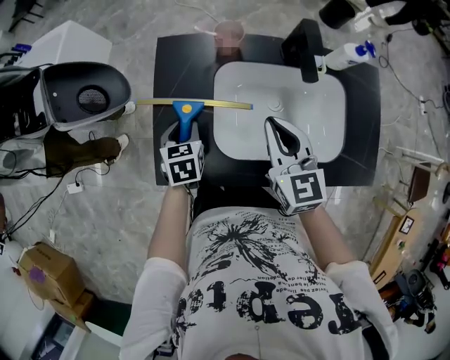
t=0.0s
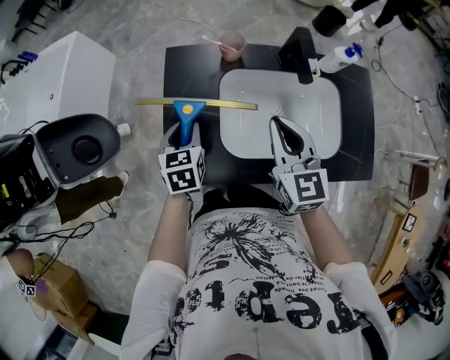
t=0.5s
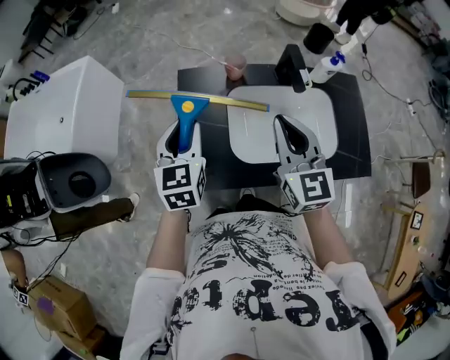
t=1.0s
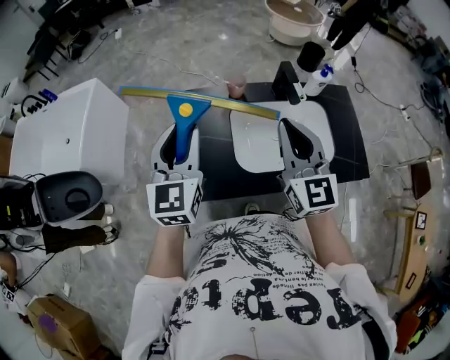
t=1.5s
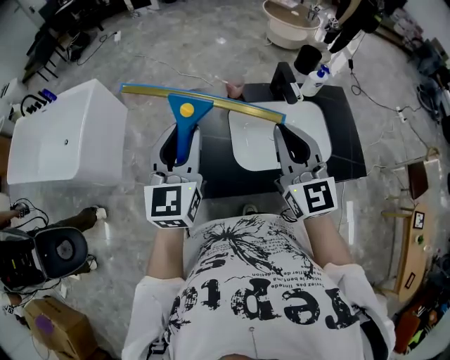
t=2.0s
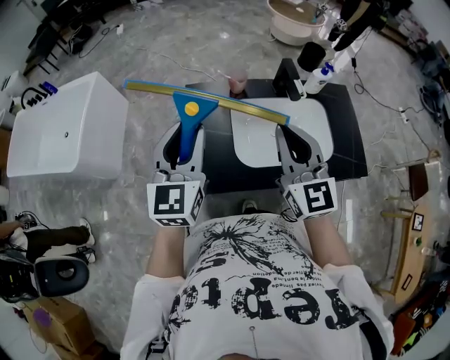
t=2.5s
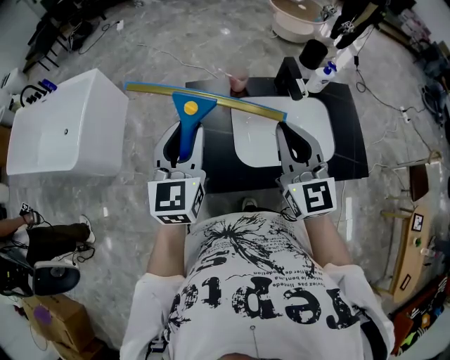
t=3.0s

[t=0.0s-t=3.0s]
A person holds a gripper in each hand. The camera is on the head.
t=0.0s to t=1.5s: The left gripper goes some 35 cm upward, and tilts its fingers roughly 40 degrees upward; the right gripper goes about 20 cm upward, and changes its angle by some 30 degrees.
t=1.5s to t=3.0s: The grippers make only small movements.

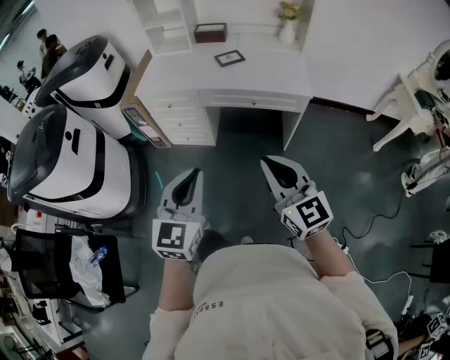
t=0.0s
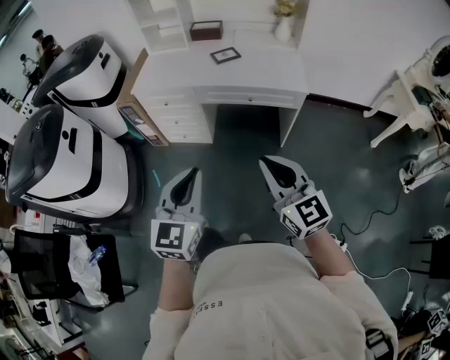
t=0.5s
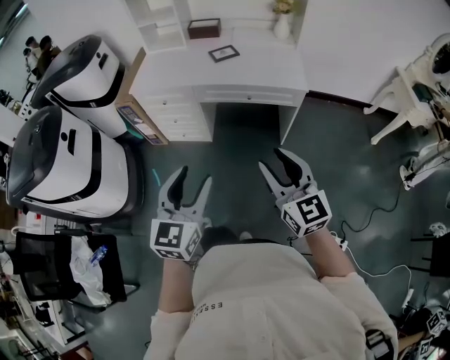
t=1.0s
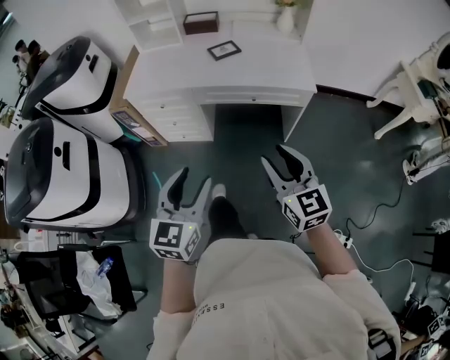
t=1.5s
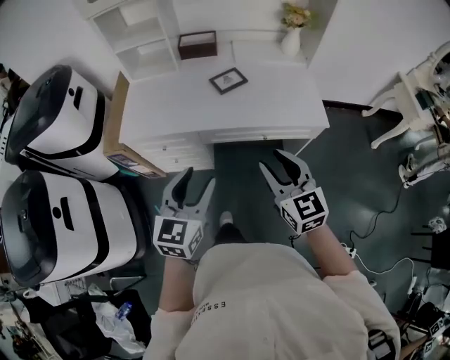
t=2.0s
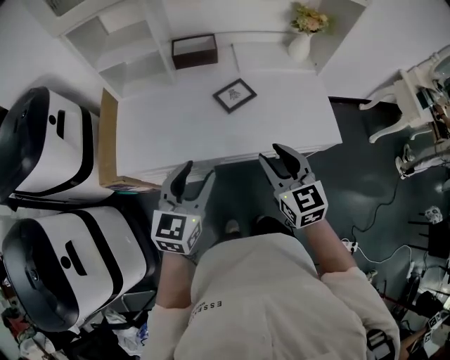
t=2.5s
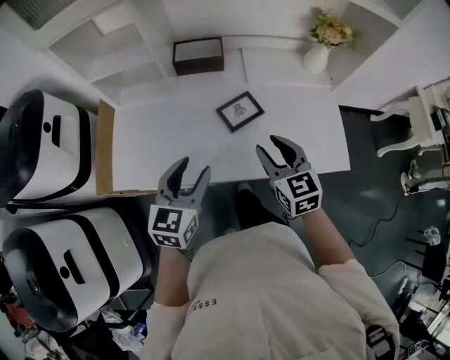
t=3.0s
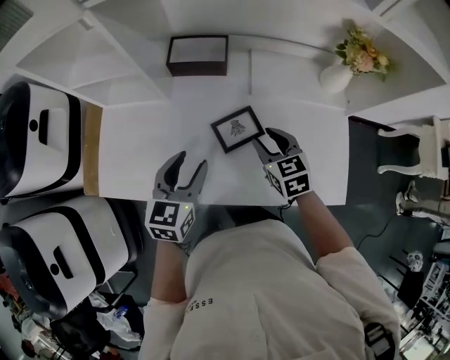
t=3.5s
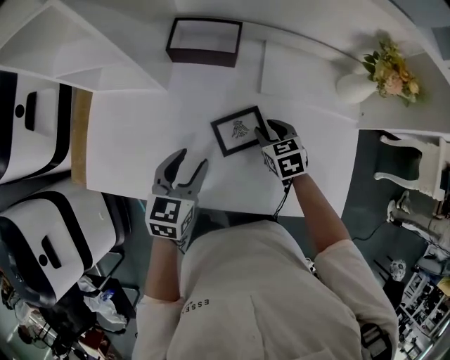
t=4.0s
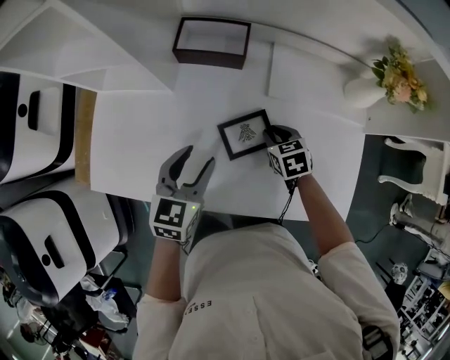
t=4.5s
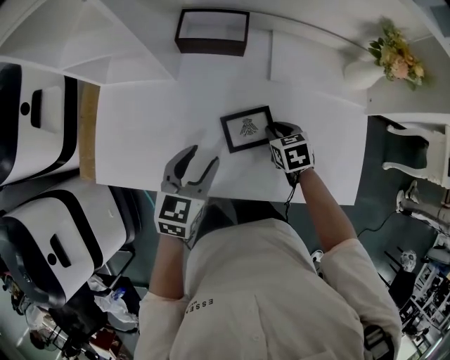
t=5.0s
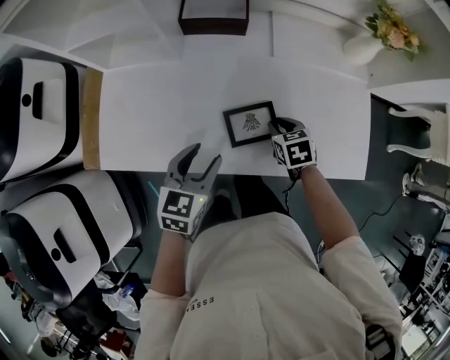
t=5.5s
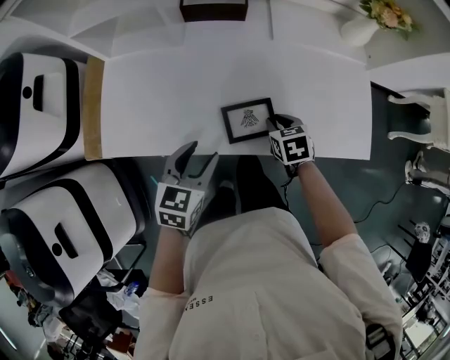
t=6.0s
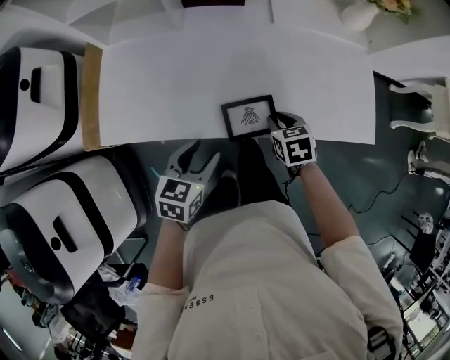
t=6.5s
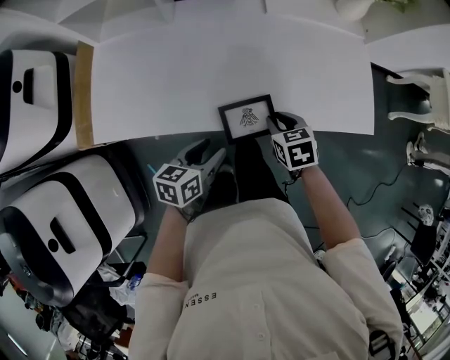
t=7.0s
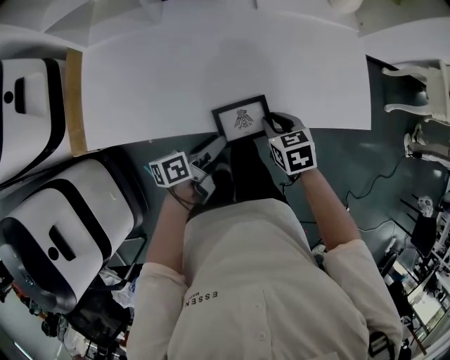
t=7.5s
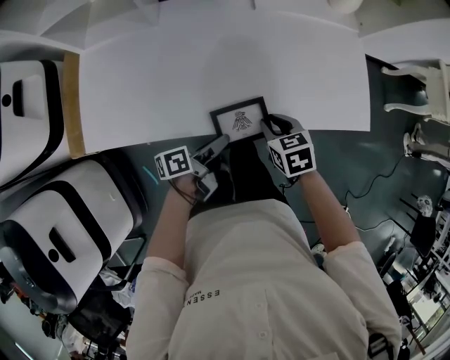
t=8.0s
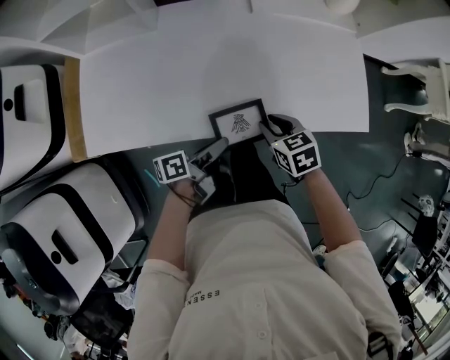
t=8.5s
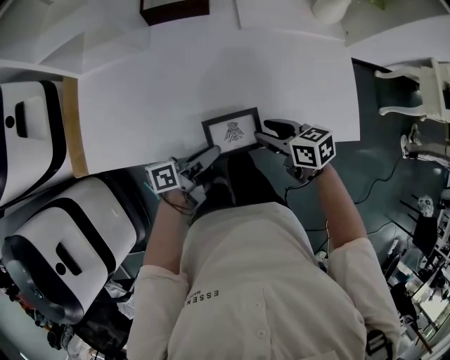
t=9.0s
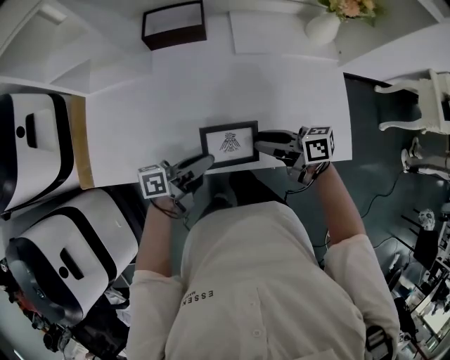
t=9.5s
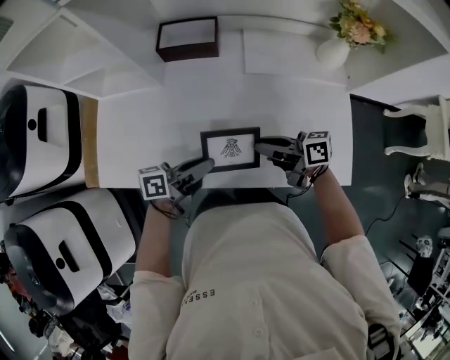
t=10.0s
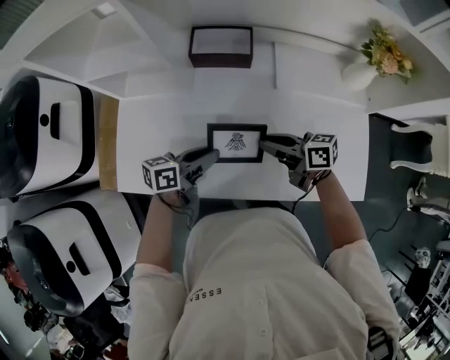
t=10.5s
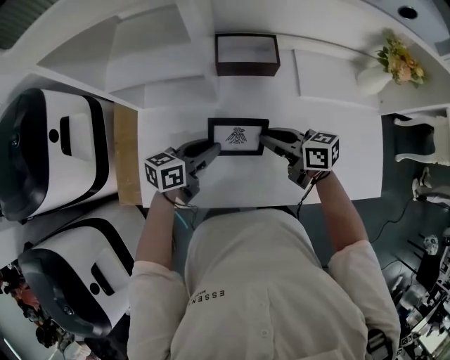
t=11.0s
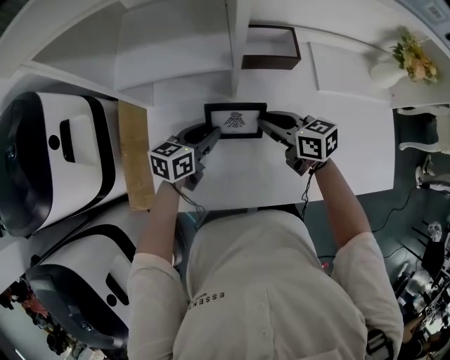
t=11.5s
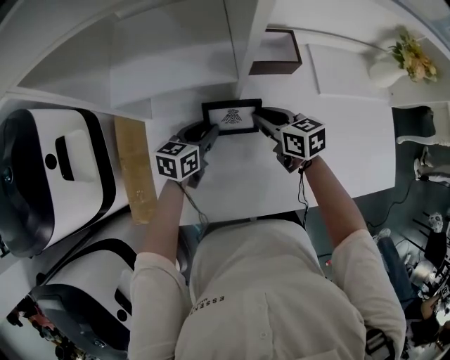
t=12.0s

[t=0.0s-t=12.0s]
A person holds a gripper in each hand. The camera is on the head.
t=0.0s to t=2.0s: The grippers both shift forward by about 30 cm. The right gripper opens up. The left gripper opens.
t=2.0s to t=4.0s: The pair of grippers is taken forward, about 50 cm. The right gripper shifts approximately 25 cm downward, and points its fingers approximately 40 degrees further downward; the left gripper turns by roughly 20 degrees.
t=4.0s to t=6.0s: The grippers both shift backward by about 15 cm.
t=6.0s to t=8.0s: The right gripper moves backward, approximately 10 cm; the left gripper travels downward and to the right by roughly 15 cm, rolls counterclockwise, seen from behind, by roughly 60 degrees, and closes.
t=8.0s to t=10.0s: The left gripper goes roughly 10 cm upward, and changes its angle by about 20 degrees, while the right gripper changes place by about 15 cm, tips its fingers upward by about 50 degrees, and opens and closes again.
t=10.0s to t=12.0s: The right gripper shifts by roughly 30 cm, and turns by roughly 40 degrees. The left gripper ends up roughly 35 cm from where it was, and changes its angle by roughly 40 degrees.

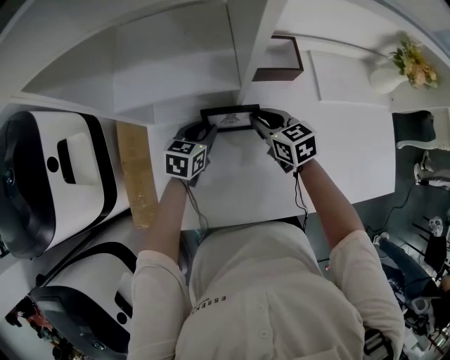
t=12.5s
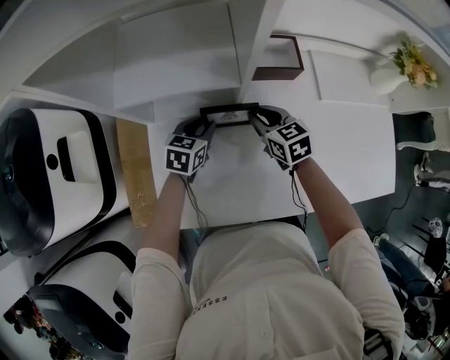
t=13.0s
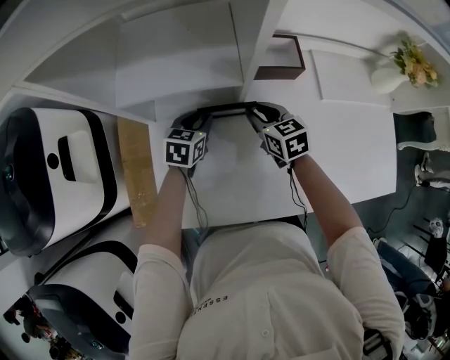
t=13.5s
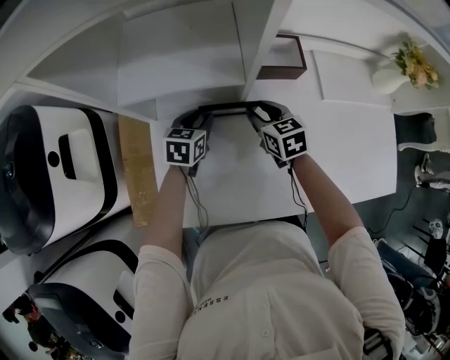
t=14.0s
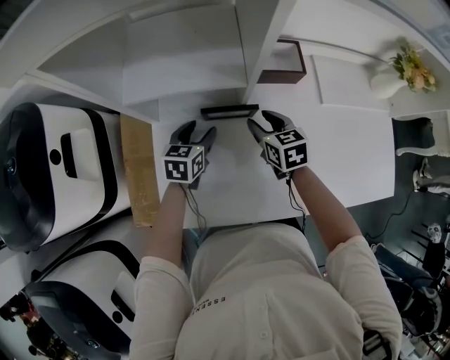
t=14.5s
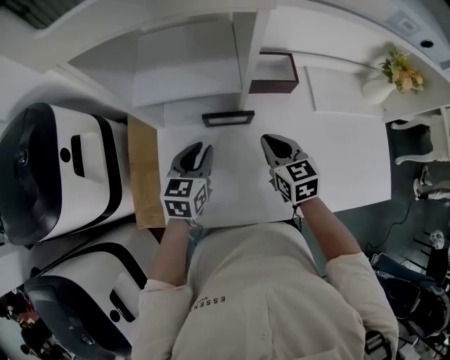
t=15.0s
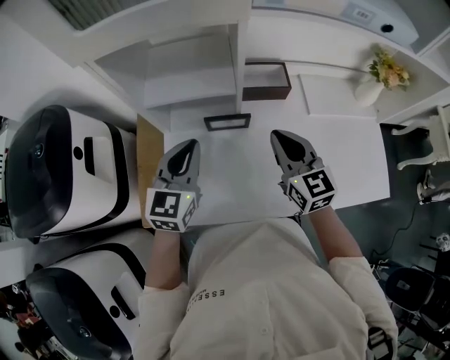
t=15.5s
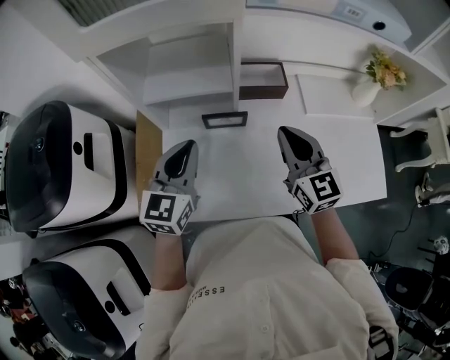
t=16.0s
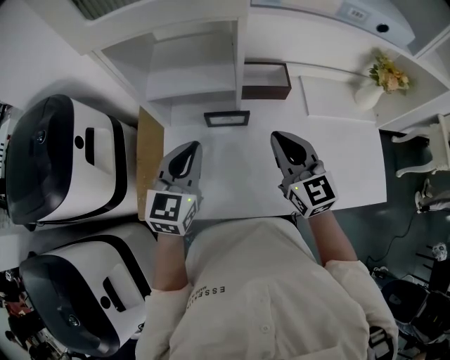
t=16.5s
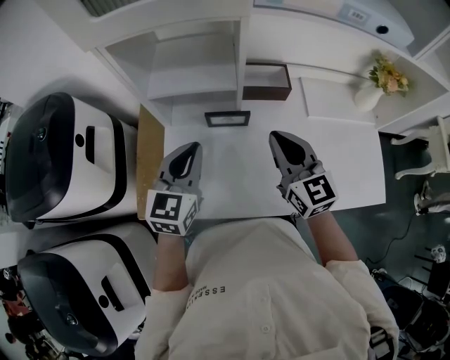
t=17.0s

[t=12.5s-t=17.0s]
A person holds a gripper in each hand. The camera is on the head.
t=12.5s to t=14.5s: The left gripper opens its fingers. The right gripper opens up.
t=14.5s to t=17.0s: The grippers both shift upward and backward by roughly 25 cm. The right gripper angles its fingers upward, by roughly 30 degrees, and closes up; the left gripper changes its angle by roughly 30 degrees, and closes up.

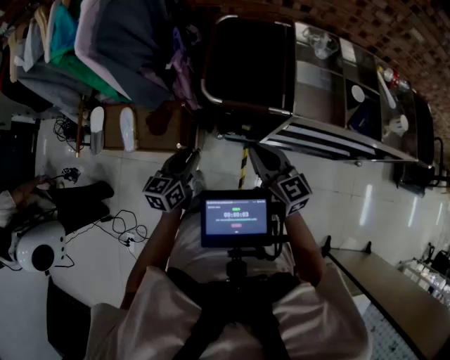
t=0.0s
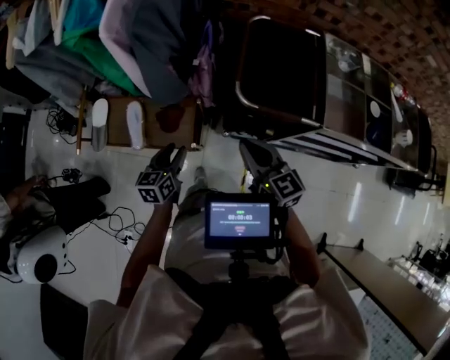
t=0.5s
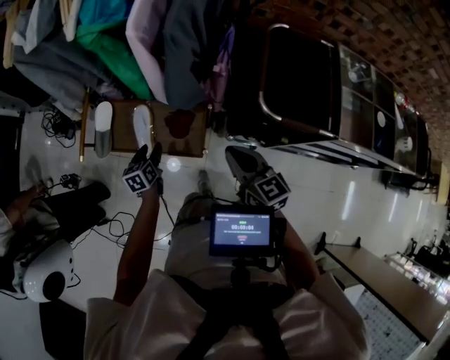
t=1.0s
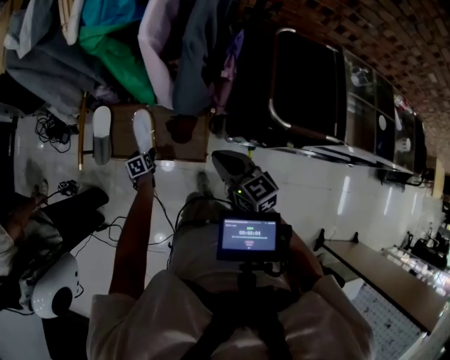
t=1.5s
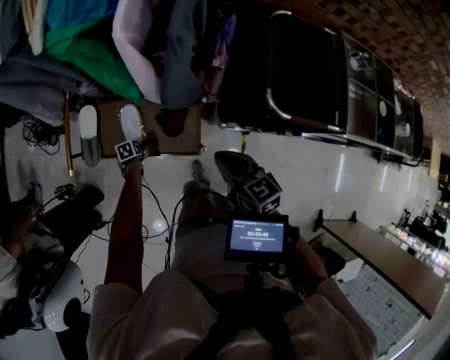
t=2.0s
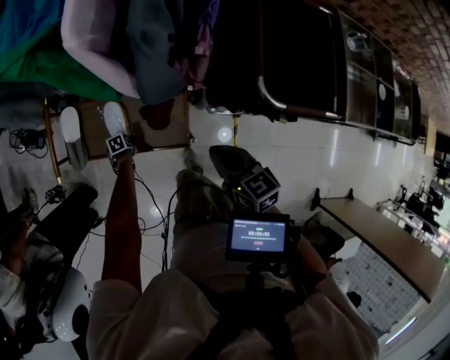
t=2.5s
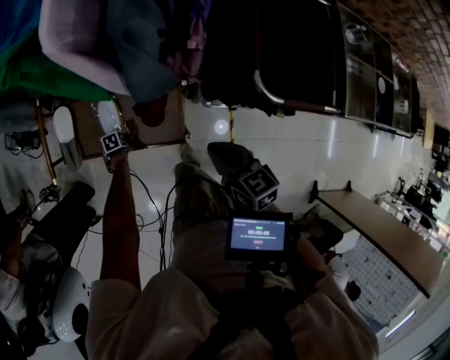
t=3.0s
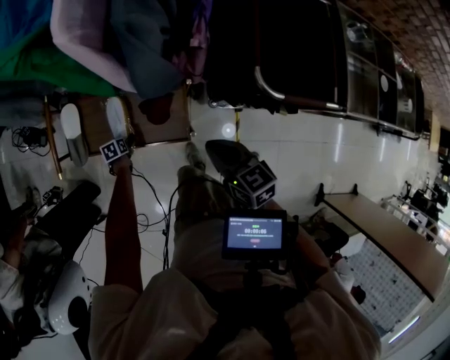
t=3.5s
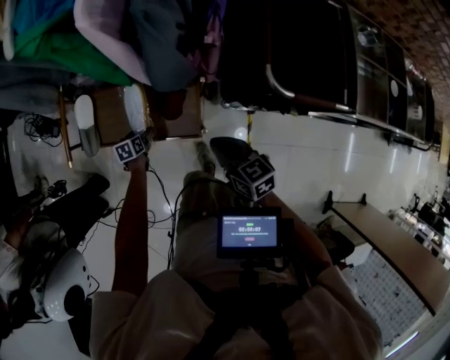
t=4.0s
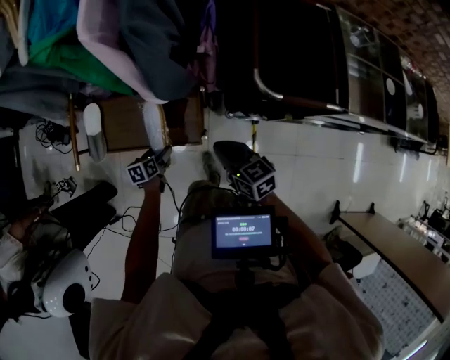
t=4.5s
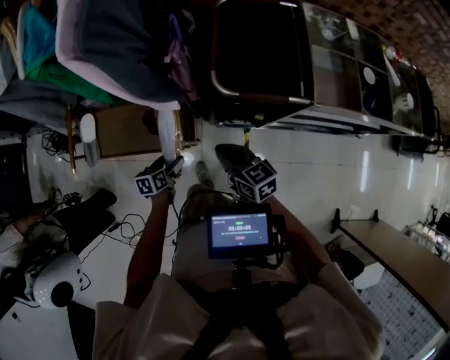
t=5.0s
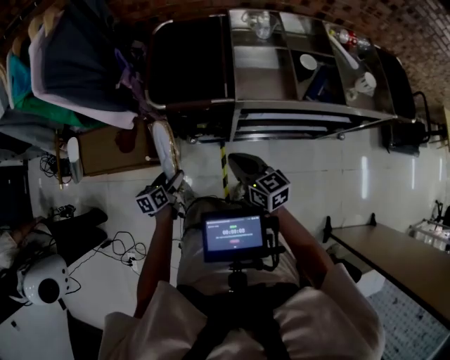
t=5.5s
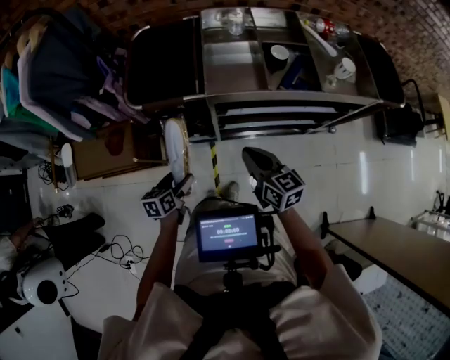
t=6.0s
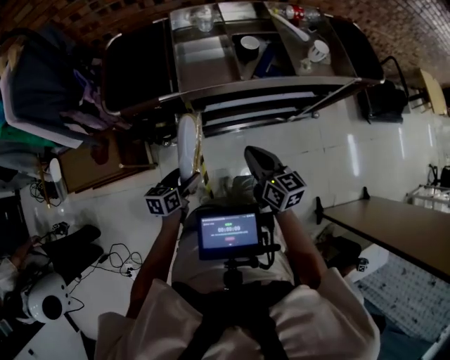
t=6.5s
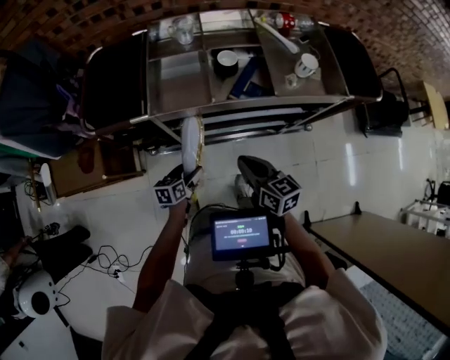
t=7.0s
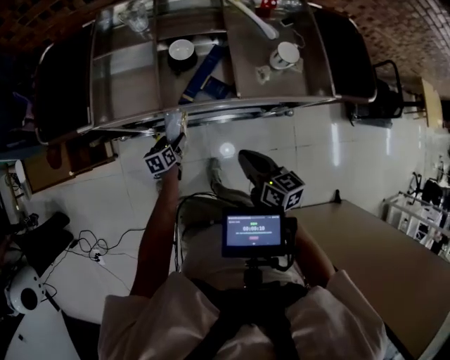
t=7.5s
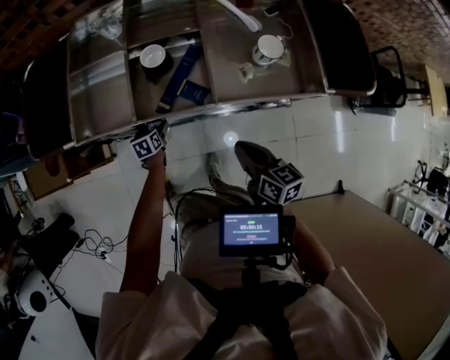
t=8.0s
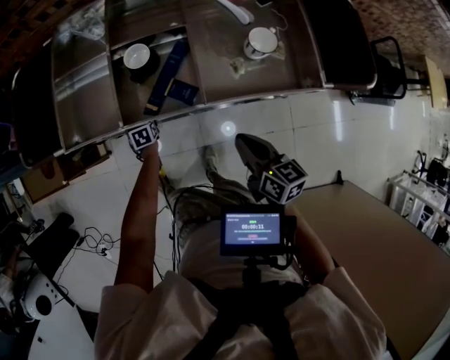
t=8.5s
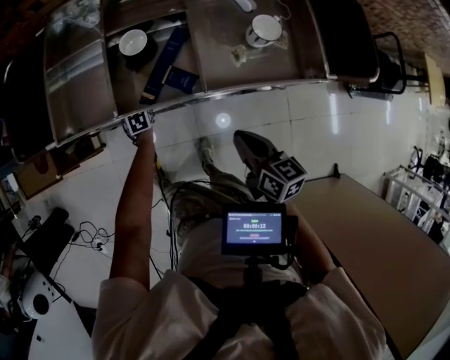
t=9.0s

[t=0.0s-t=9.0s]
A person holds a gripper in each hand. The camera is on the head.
t=0.0s to t=2.0s: The right gripper goes roughly 35 cm to the left and forward; the left gripper heads to the left, downward and forward, covering roughly 70 cm, angles its fingers downward, by about 50 degrees, and opens.
t=2.0s to t=4.5s: The left gripper shifts by approximately 20 cm, and turns by some 30 degrees. Meanwhile the right gripper moves downward, approximately 5 cm.
t=4.5s to t=7.0s: The two grippers travel together, approximately 70 cm. The right gripper swivels some 20 degrees. The left gripper turns by some 20 degrees.
t=7.0s to t=9.0s: The left gripper heads forward, downward and to the right, covering approximately 30 cm, and swivels some 40 degrees. Meanwhile the right gripper goes roughly 25 cm to the right.
